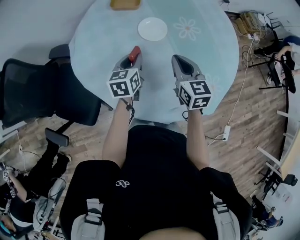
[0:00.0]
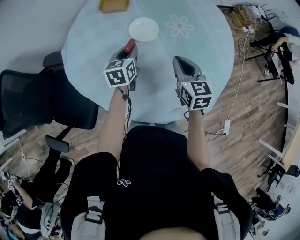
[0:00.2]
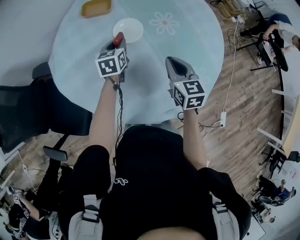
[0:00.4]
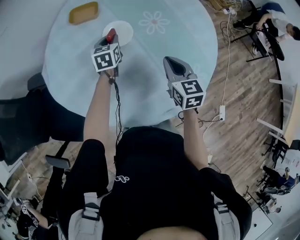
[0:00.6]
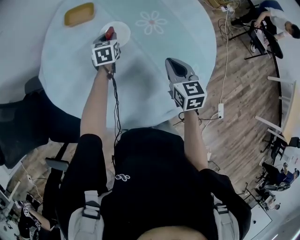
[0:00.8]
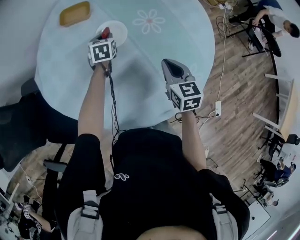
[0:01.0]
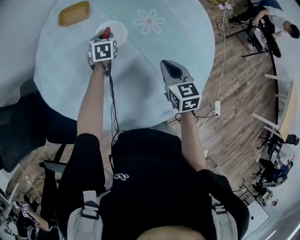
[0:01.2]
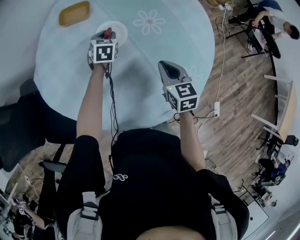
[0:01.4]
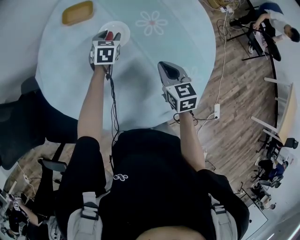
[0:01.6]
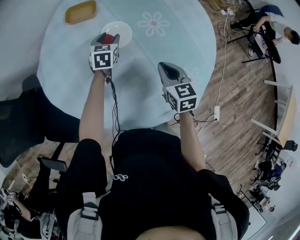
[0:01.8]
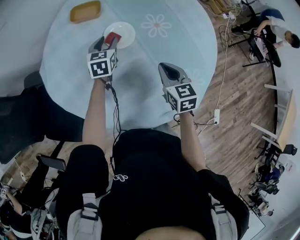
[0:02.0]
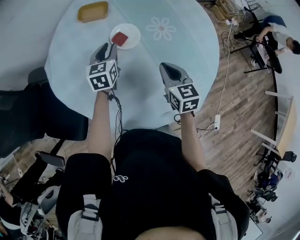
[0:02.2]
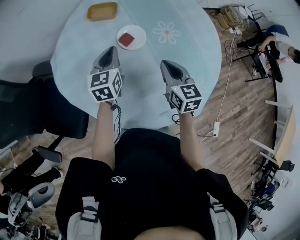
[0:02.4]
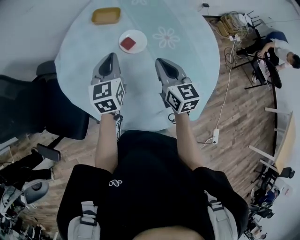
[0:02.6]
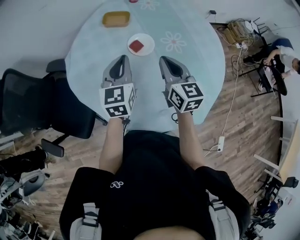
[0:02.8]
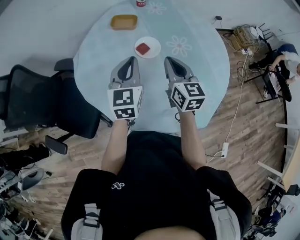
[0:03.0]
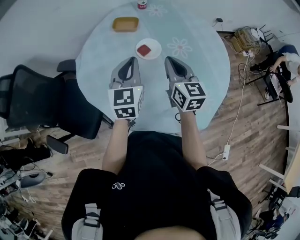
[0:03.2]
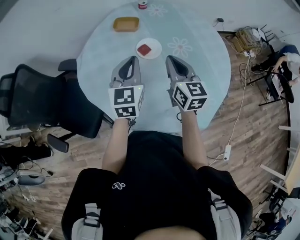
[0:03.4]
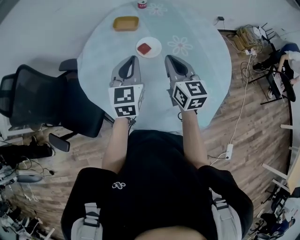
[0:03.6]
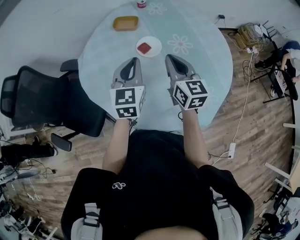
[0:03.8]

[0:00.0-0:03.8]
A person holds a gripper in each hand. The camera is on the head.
0.0 to 1.2 s: The right gripper shifts some 15 cm to the right and downward; the left gripper moves forward and downward, about 20 cm, and rotates roughly 30 degrees.
1.2 to 2.6 s: The left gripper moves upward and backward, approximately 25 cm, changes its angle by approximately 30 degrees, and closes up. Meanwhile the right gripper is displaced upward and to the left by approximately 15 cm, and turns by some 20 degrees.
2.6 to 3.8 s: The left gripper is displaced backward and upward by about 10 cm. Meanwhile the right gripper moves upward, some 5 cm.

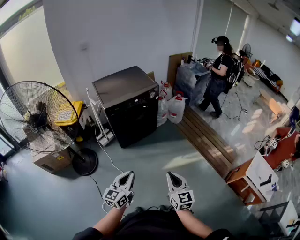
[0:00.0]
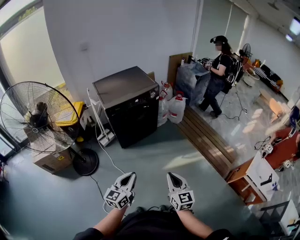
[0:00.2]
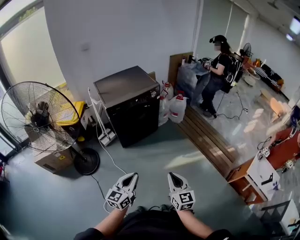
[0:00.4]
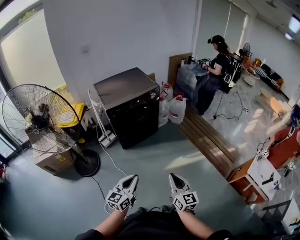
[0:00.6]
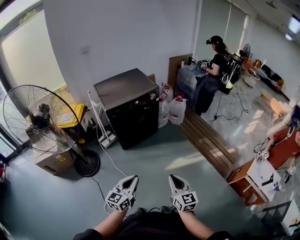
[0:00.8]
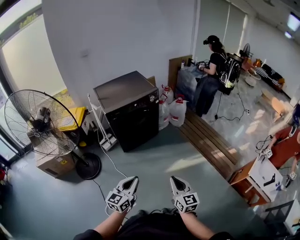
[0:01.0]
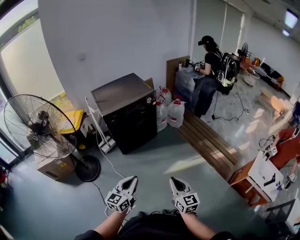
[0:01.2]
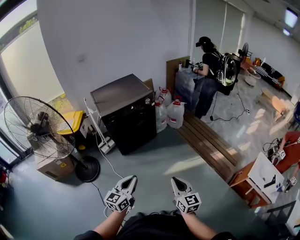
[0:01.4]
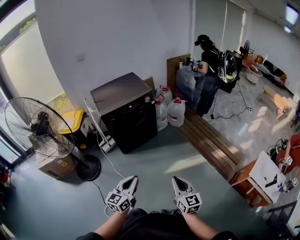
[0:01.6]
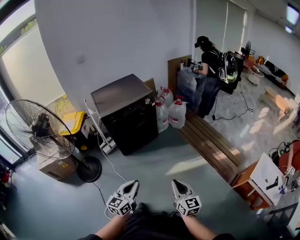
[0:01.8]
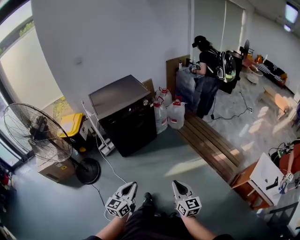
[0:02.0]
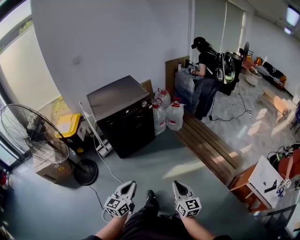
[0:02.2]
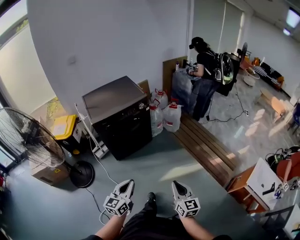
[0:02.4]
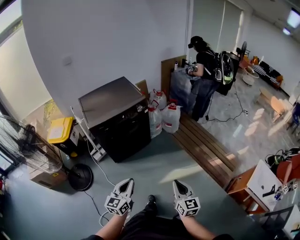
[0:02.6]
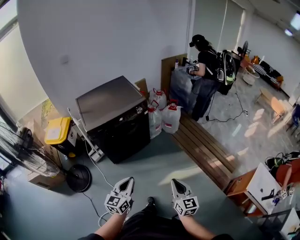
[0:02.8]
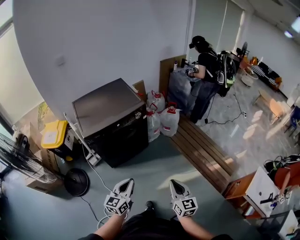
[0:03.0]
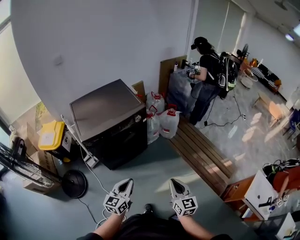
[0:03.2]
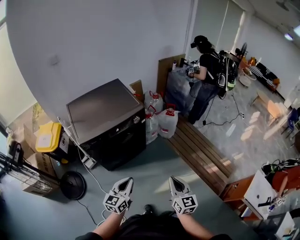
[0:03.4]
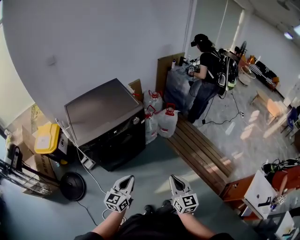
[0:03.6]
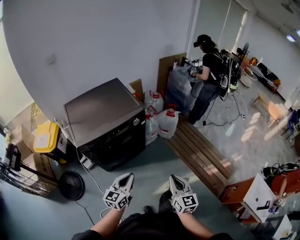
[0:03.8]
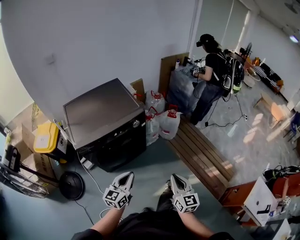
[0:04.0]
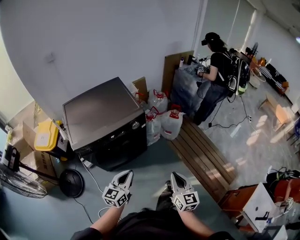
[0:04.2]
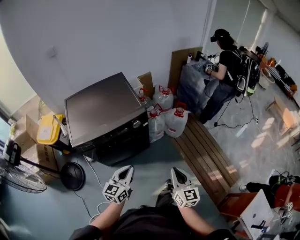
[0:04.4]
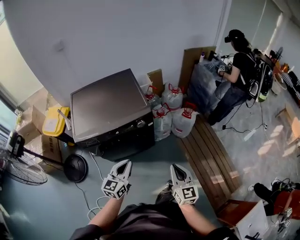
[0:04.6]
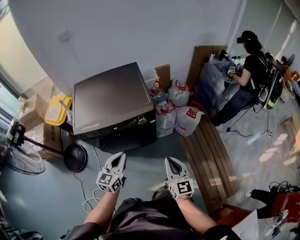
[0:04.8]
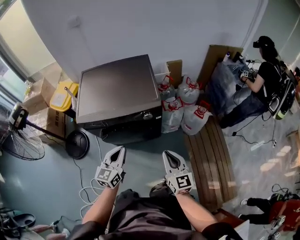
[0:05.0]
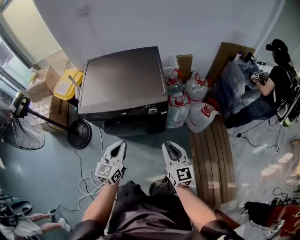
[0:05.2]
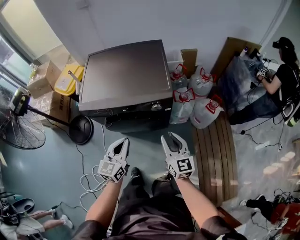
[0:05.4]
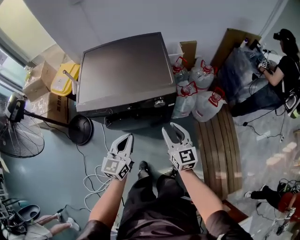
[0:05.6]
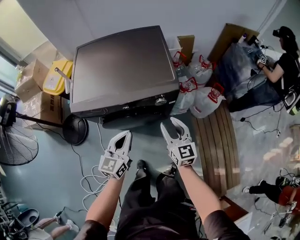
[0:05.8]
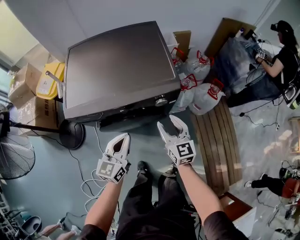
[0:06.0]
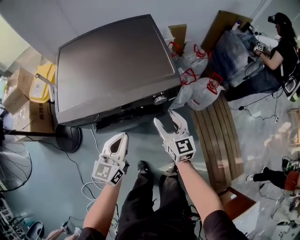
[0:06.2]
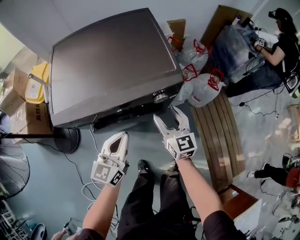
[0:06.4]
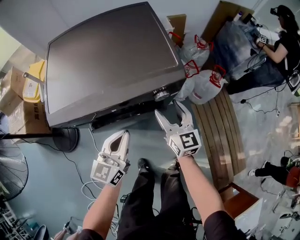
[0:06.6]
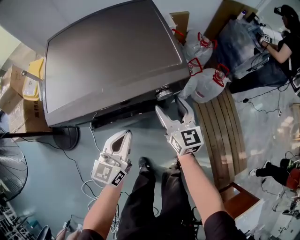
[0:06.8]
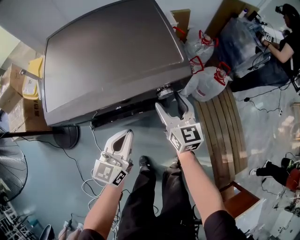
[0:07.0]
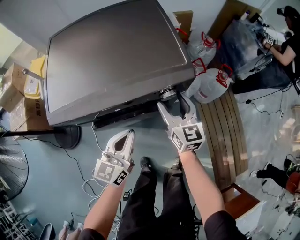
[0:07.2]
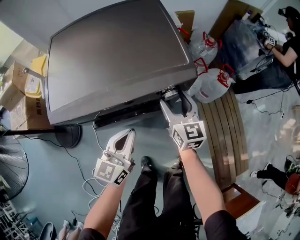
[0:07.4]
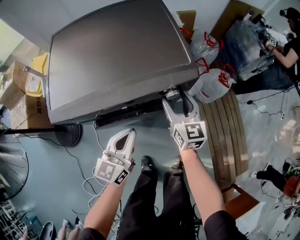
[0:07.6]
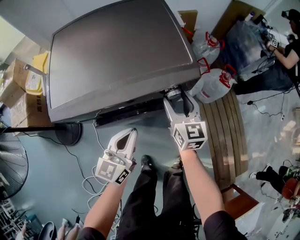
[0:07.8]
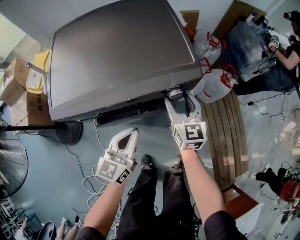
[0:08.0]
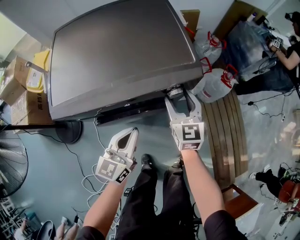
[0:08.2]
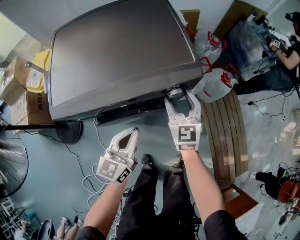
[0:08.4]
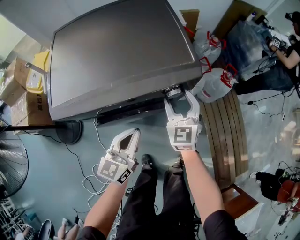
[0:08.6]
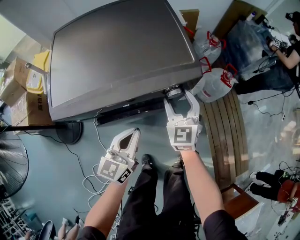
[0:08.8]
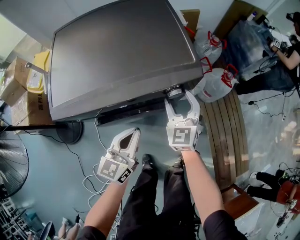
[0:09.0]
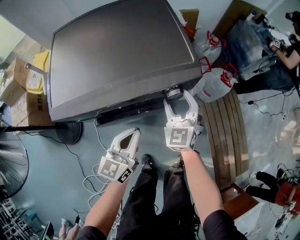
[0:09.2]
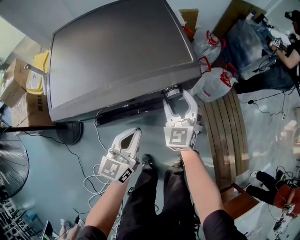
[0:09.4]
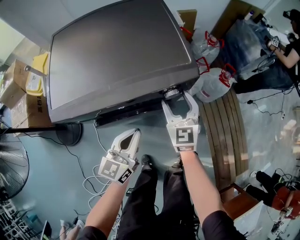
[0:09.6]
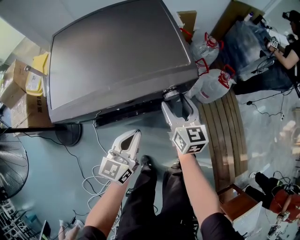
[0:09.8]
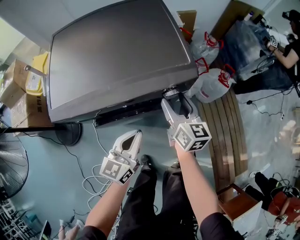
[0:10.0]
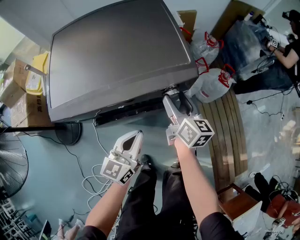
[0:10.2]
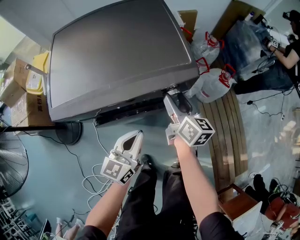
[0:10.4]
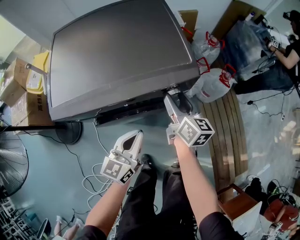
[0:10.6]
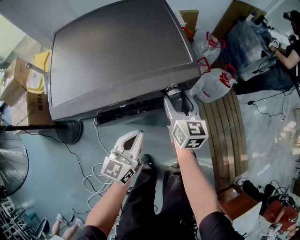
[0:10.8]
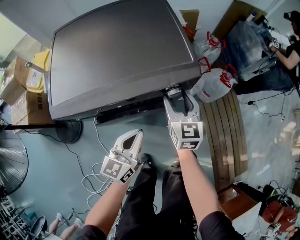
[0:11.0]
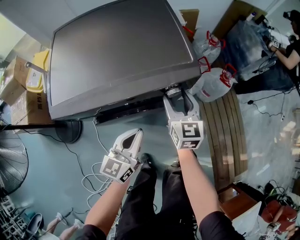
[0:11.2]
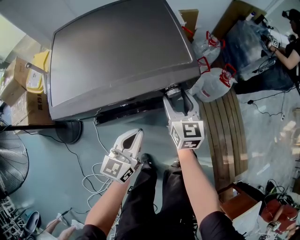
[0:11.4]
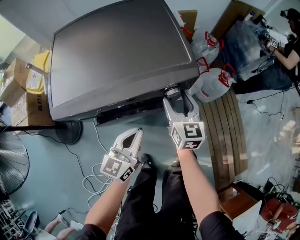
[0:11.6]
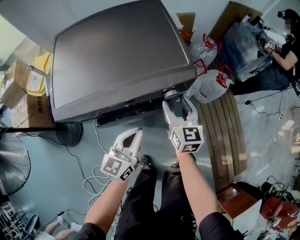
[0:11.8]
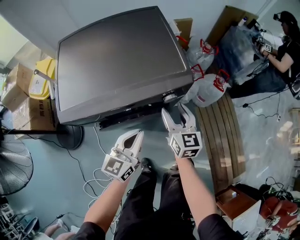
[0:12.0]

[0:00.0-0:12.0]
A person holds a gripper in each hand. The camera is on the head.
0.0 to 1.6 s: The grippers both shift to the right by about 10 cm.
1.6 to 3.0 s: Both grippers travel together forward, some 25 cm.
3.0 to 4.4 s: Both grippers move forward, approximately 25 cm.
4.4 to 6.0 s: The left gripper changes place by about 20 cm. The right gripper ends up approximately 35 cm from where it was, swivels some 30 degrees, and opens up.
6.0 to 7.6 s: The right gripper heads forward, covering about 10 cm. Meanwhile the left gripper moves downward, about 5 cm.
7.6 to 9.0 s: The right gripper rotates some 30 degrees.
9.0 to 10.4 s: The right gripper rotates around the line of its fingers by approximately 60 degrees, clockwise from behind.
10.4 to 12.0 s: The right gripper changes its angle by roughly 30 degrees.

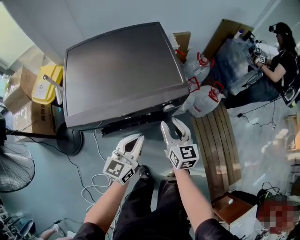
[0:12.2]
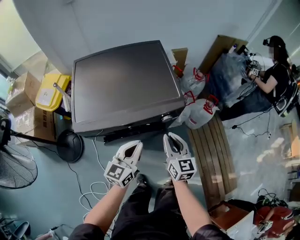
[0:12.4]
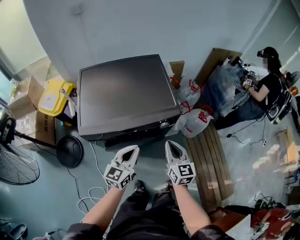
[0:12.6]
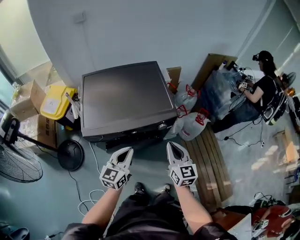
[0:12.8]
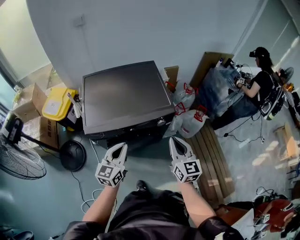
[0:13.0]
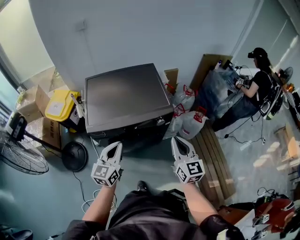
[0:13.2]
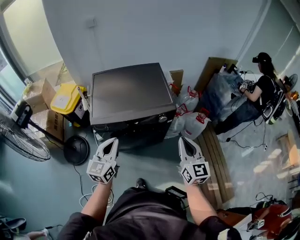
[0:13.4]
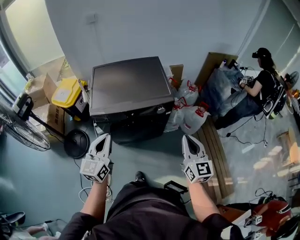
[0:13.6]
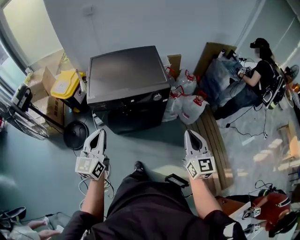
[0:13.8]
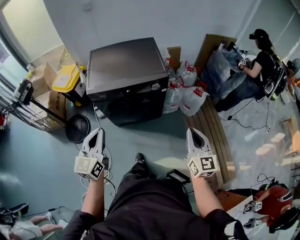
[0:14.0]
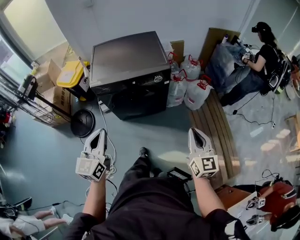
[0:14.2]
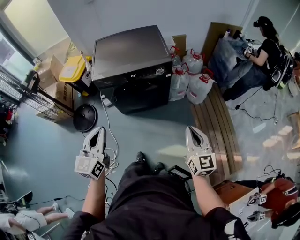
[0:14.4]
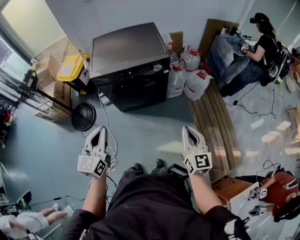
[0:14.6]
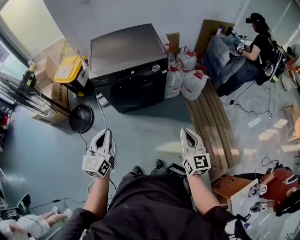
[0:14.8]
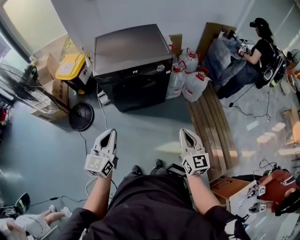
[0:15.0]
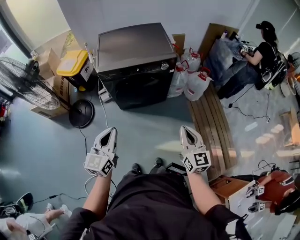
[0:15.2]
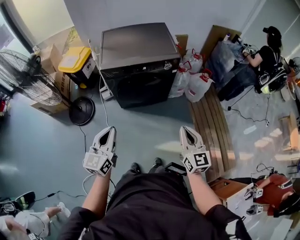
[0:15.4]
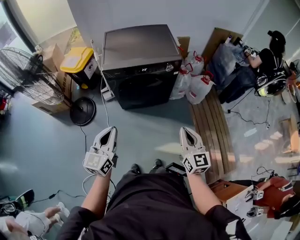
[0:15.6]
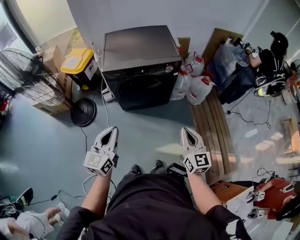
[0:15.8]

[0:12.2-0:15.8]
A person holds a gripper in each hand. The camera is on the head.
12.2 to 14.0 s: The left gripper is displaced backward and upward by some 35 cm, and turns by roughly 20 degrees, while the right gripper is displaced backward, upward and to the right by some 40 cm, and closes up.
14.0 to 15.8 s: The right gripper shifts some 15 cm backward and to the left. Meanwhile the left gripper travels backward by about 10 cm.

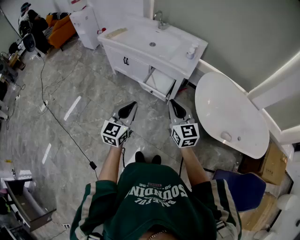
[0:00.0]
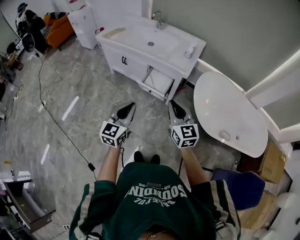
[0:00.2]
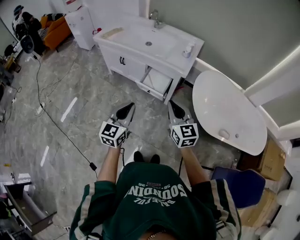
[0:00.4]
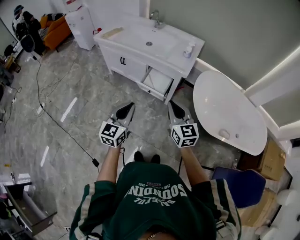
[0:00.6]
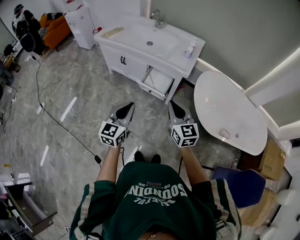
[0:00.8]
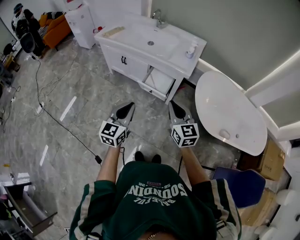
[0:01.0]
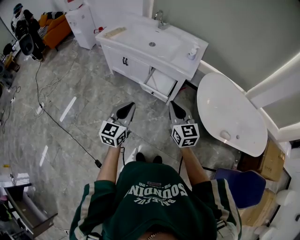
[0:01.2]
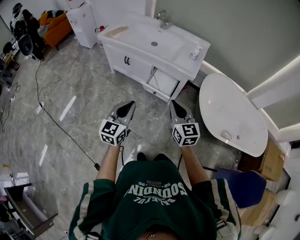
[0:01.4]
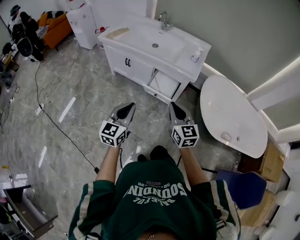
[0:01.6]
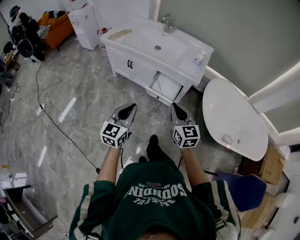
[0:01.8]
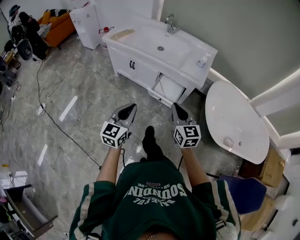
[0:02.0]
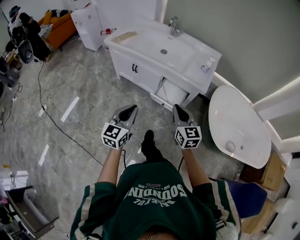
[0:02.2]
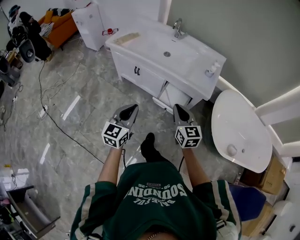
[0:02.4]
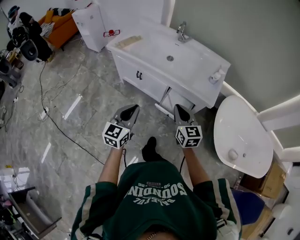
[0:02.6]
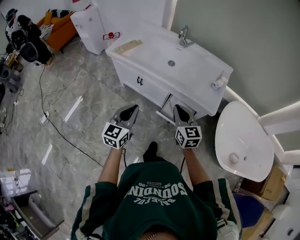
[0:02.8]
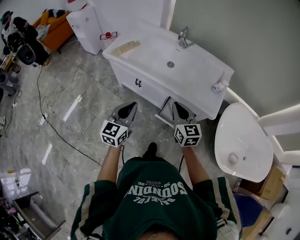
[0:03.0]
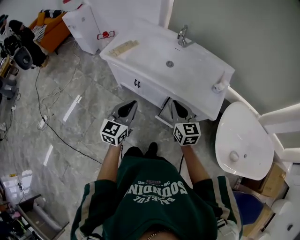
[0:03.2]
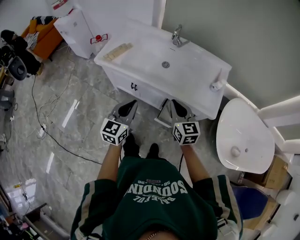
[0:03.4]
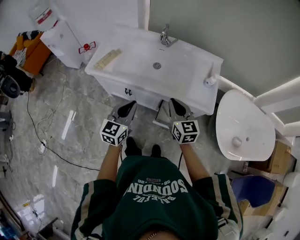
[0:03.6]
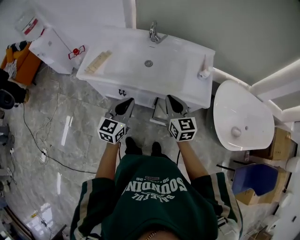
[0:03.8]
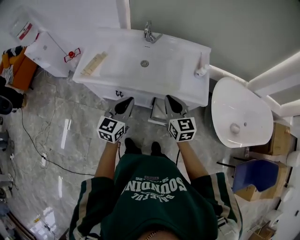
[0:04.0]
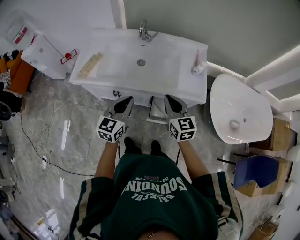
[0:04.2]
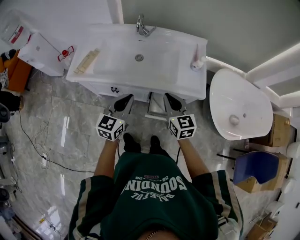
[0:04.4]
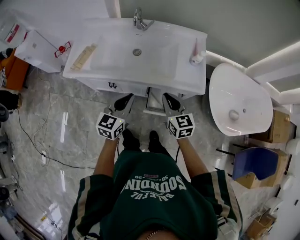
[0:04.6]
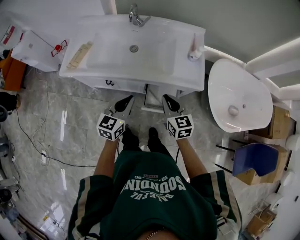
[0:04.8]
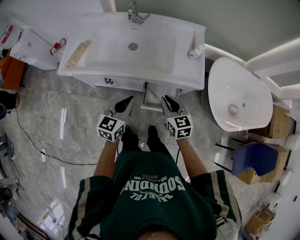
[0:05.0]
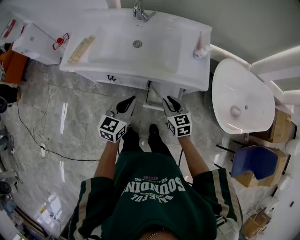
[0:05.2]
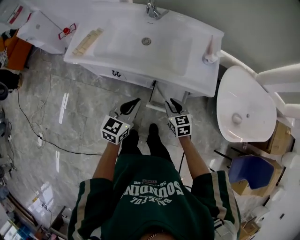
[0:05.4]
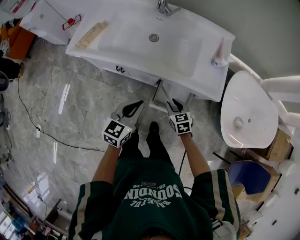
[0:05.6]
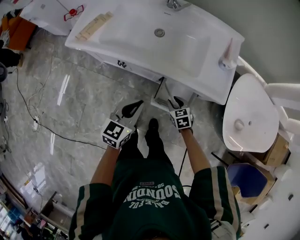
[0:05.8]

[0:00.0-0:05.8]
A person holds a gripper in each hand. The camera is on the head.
0.0 to 1.4 s: Both grippers move to the left, approximately 5 cm.
1.4 to 2.8 s: The grippers both shift forward and to the left by approximately 30 cm.
2.8 to 4.4 s: The left gripper moves forward, some 20 cm, and rotates about 20 degrees; the right gripper shifts approximately 10 cm forward.
4.4 to 5.8 s: The right gripper moves downward, some 30 cm, tilts its fingers some 40 degrees downward, and opens, while the left gripper is displaced downward by roughly 10 cm.
